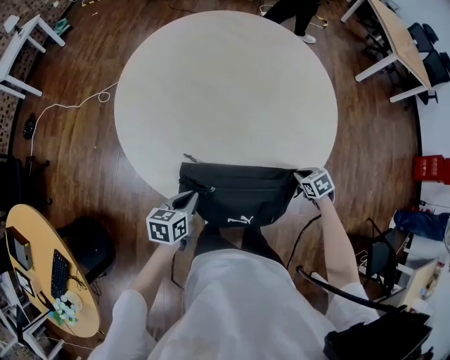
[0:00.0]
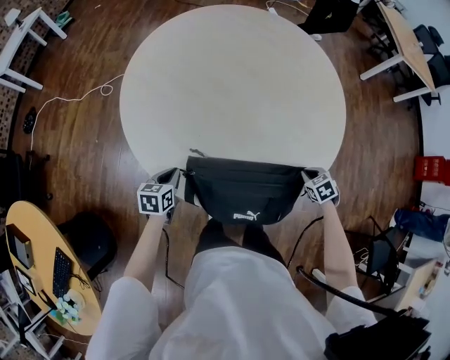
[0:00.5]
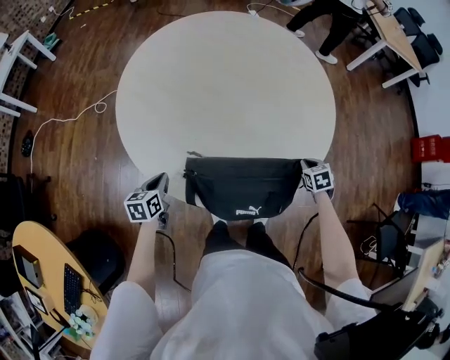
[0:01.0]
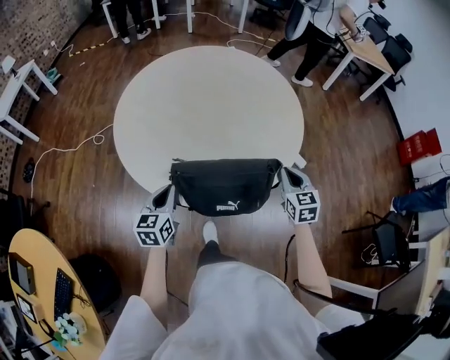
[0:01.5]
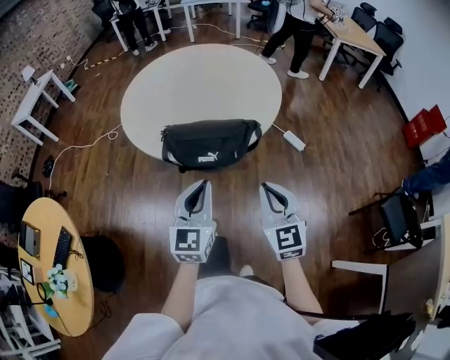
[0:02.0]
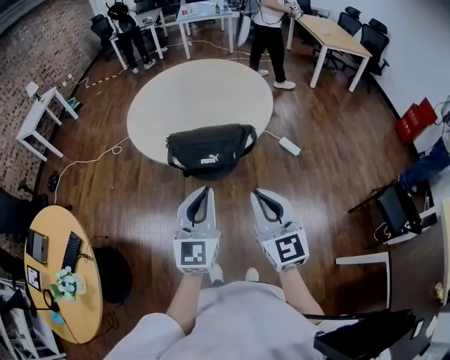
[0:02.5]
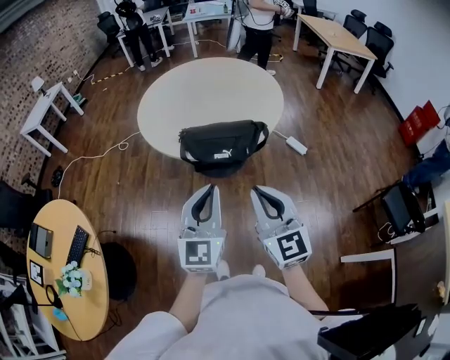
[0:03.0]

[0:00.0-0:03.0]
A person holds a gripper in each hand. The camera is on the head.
0:00.0 to 0:01.5: The right gripper moves upward and backward, approximately 20 cm, and points its fingers some 40 degrees further upward; the left gripper is displaced upward by some 10 cm, and swivels roughly 30 degrees.
0:01.5 to 0:03.0: The right gripper travels backward and upward by some 50 cm, and turns by roughly 30 degrees. Meanwhile the left gripper heads backward, upward and to the right, covering roughly 50 cm, and swivels approximately 30 degrees.

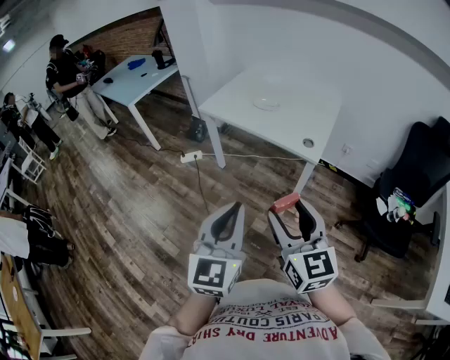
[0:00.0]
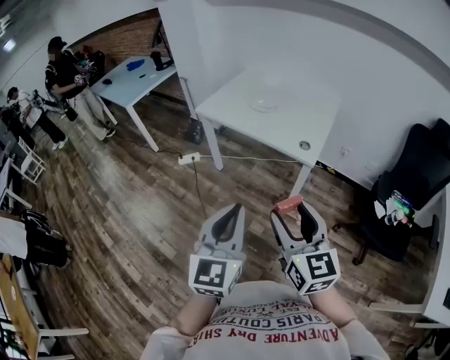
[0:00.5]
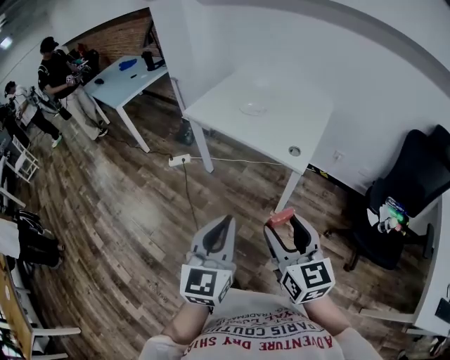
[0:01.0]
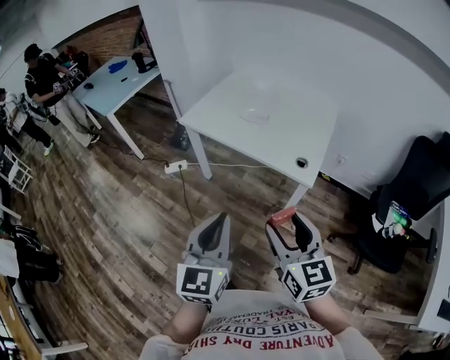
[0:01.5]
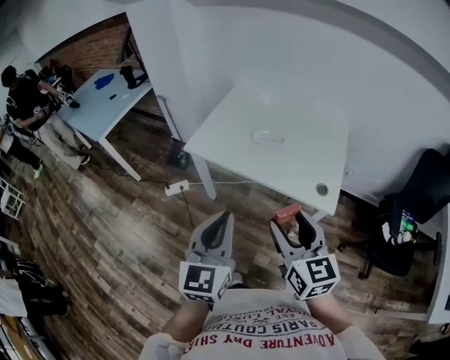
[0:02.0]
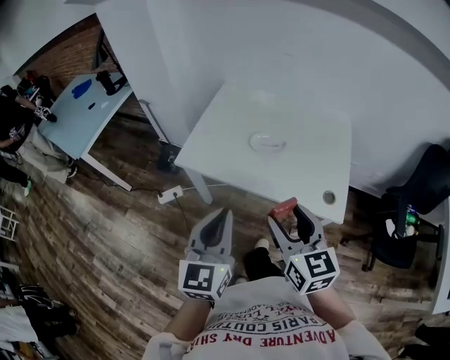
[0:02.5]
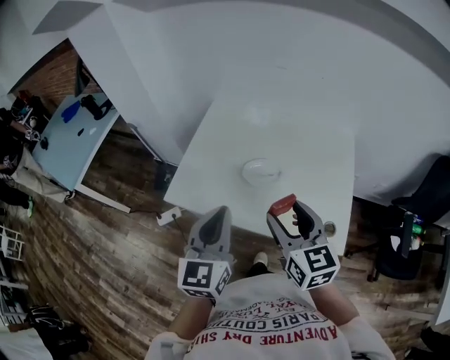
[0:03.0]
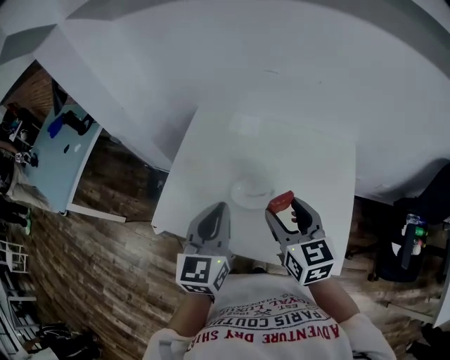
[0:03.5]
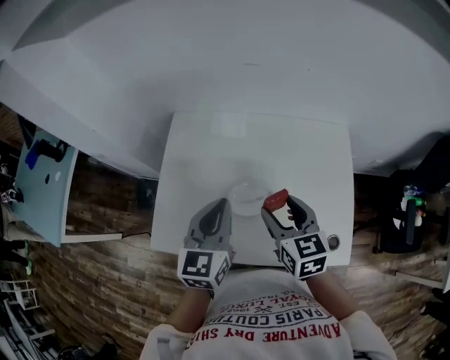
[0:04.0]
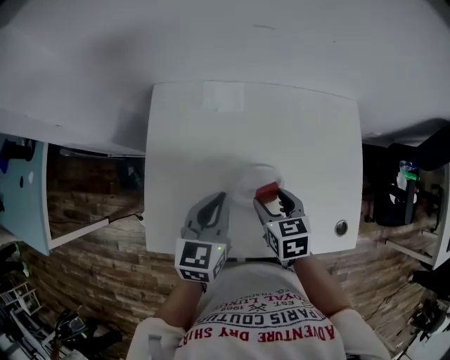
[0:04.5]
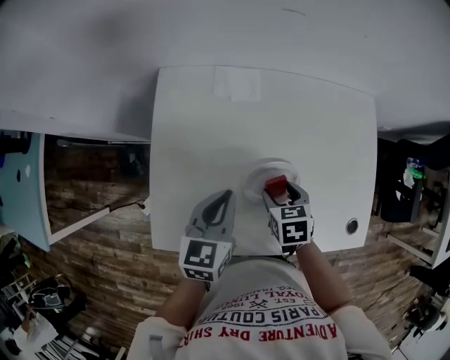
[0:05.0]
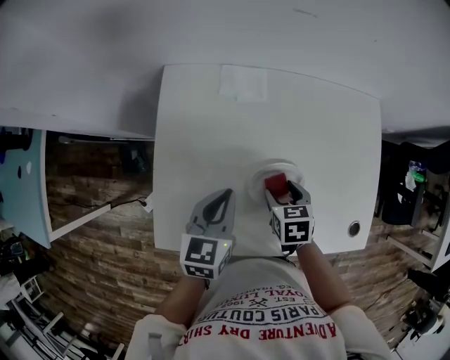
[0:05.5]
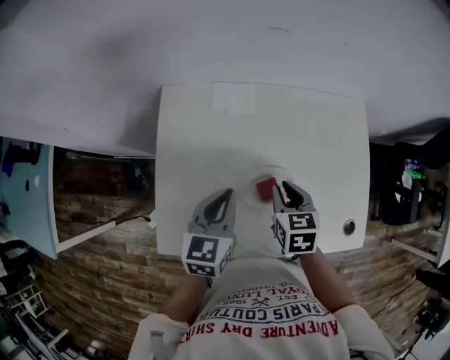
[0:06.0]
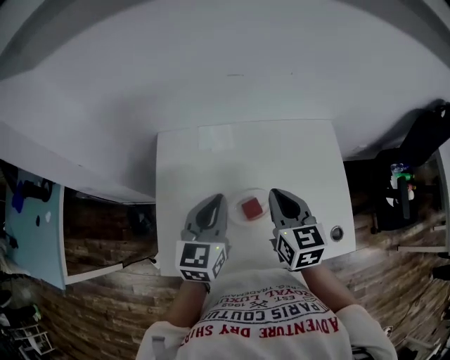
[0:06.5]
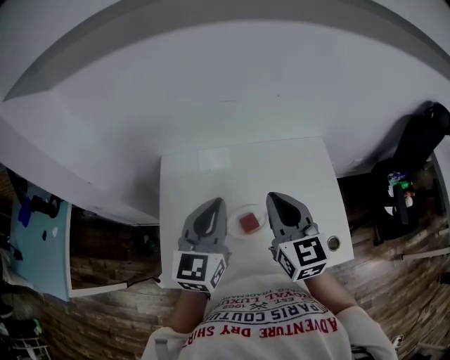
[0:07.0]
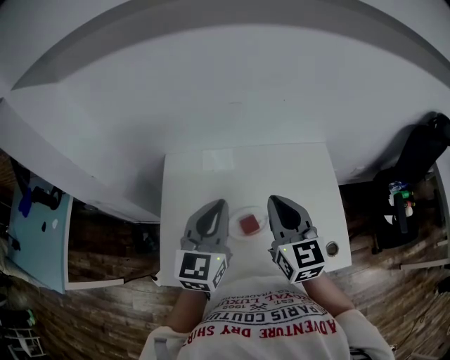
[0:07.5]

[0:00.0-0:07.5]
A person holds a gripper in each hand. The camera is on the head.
0:00.0 to 0:02.0: The two grippers go roughly 30 cm forward.
0:02.0 to 0:04.0: Both grippers are carried forward, some 50 cm. The left gripper swivels roughly 20 degrees; the right gripper turns by about 20 degrees.
0:04.0 to 0:05.5: The right gripper goes roughly 20 cm downward, and points its fingers approximately 30 degrees further downward. Meanwhile the left gripper goes about 15 cm downward and to the left, and rotates some 20 degrees.
0:05.5 to 0:07.5: The two grippers go some 25 cm upward. The right gripper angles its fingers upward, by approximately 50 degrees, and closes its fingers; the left gripper rotates about 30 degrees.

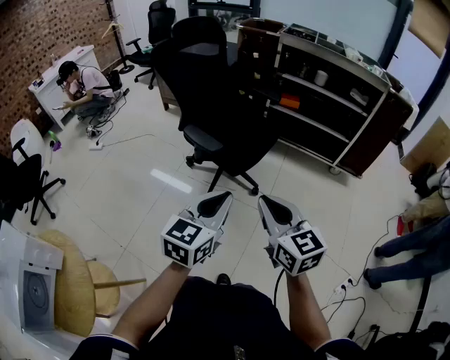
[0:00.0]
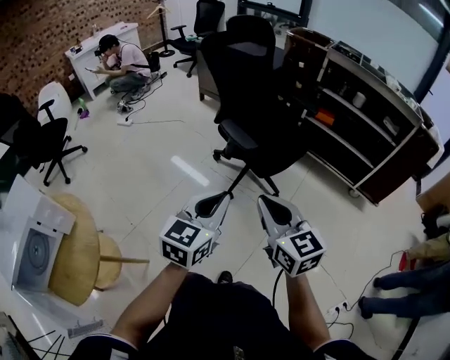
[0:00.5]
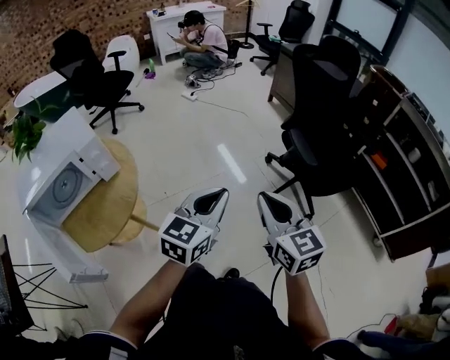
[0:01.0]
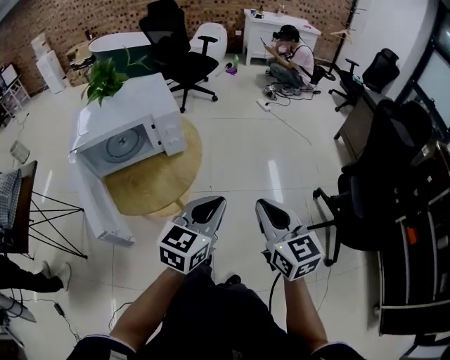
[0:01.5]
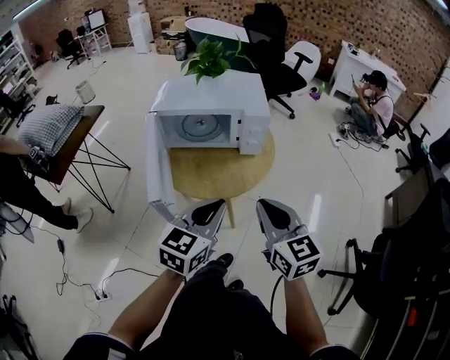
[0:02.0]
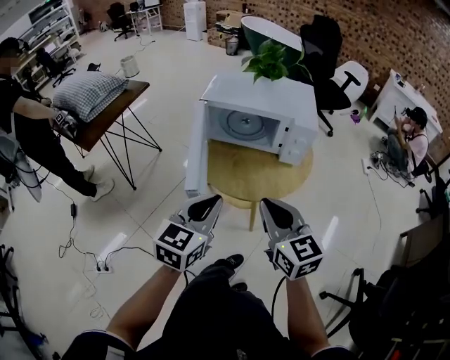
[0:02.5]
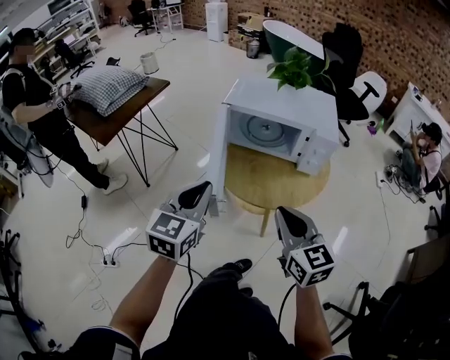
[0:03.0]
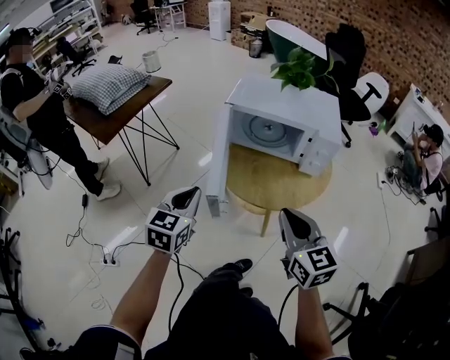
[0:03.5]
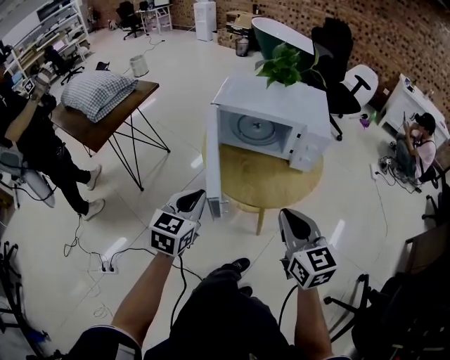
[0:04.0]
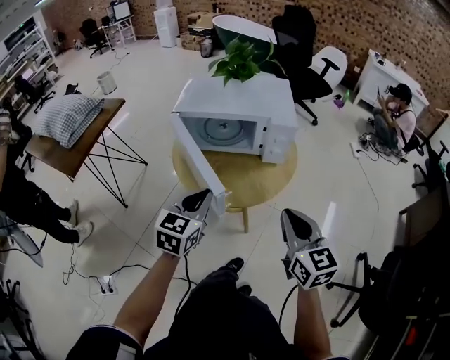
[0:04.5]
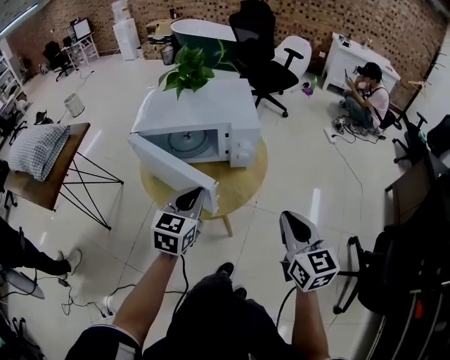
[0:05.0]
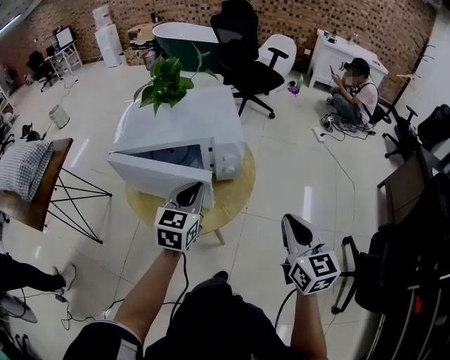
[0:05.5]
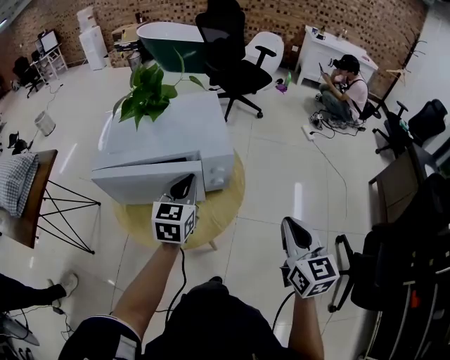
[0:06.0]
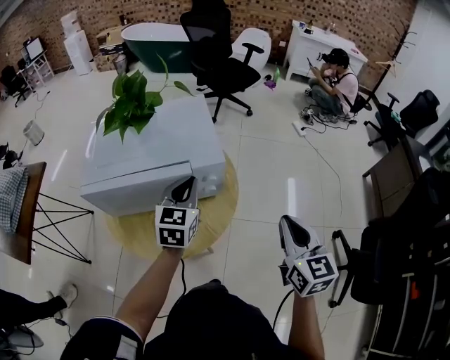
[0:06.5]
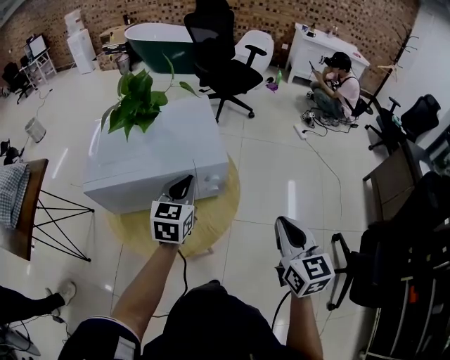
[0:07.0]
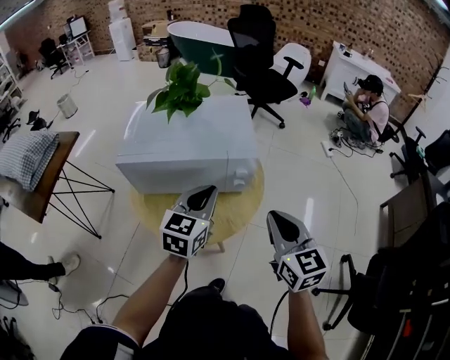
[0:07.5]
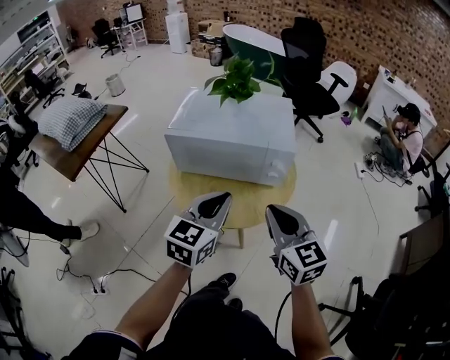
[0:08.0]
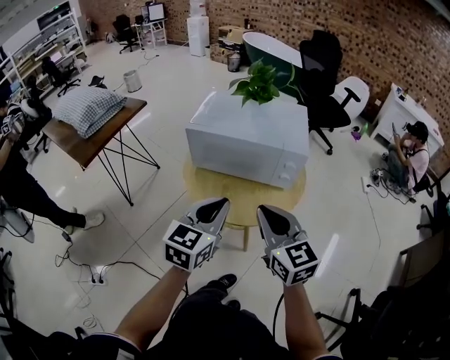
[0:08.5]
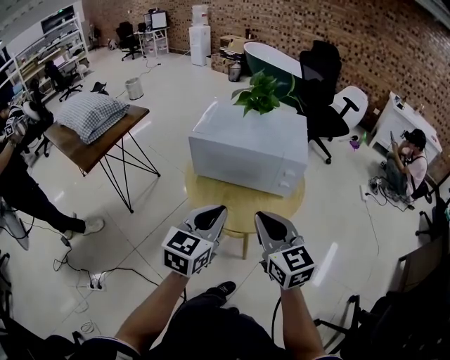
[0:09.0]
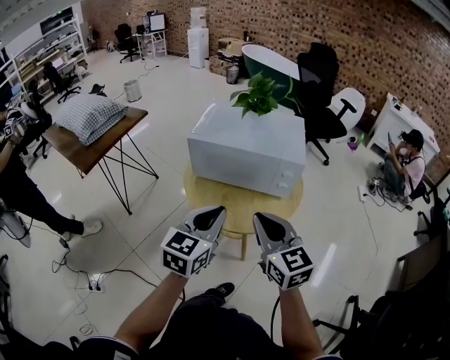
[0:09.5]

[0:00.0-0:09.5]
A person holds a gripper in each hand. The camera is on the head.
0:00.0 to 0:02.0: The two grippers travel together, roughly 50 cm. The right gripper rotates about 80 degrees. Meanwhile the left gripper changes its angle by about 80 degrees.
0:02.0 to 0:04.0: The left gripper is displaced to the left by roughly 20 cm, and swivels roughly 20 degrees. The right gripper shifts approximately 5 cm to the left.
0:04.0 to 0:05.5: The right gripper moves to the right, roughly 20 cm, and rotates about 30 degrees. The left gripper is displaced to the right and forward by approximately 25 cm.
0:05.5 to 0:07.5: The left gripper goes forward and returns, roughly 10 cm each way. Meanwhile the right gripper travels to the left and forward by roughly 10 cm.
0:07.5 to 0:09.5: The right gripper shifts some 15 cm to the left, and turns by about 20 degrees; the left gripper heads backward and to the left, covering some 20 cm.

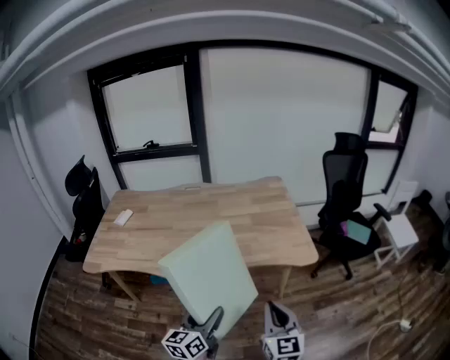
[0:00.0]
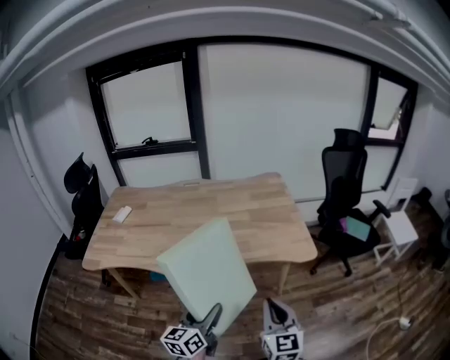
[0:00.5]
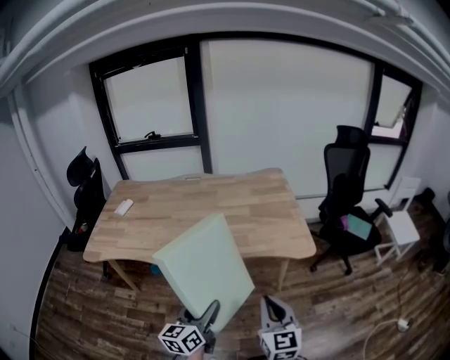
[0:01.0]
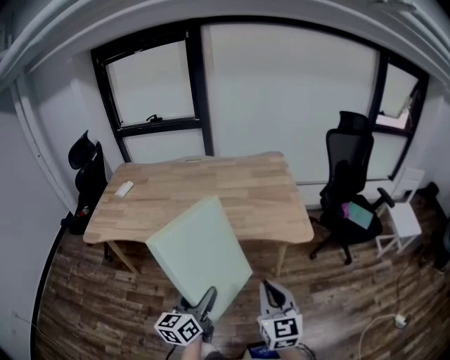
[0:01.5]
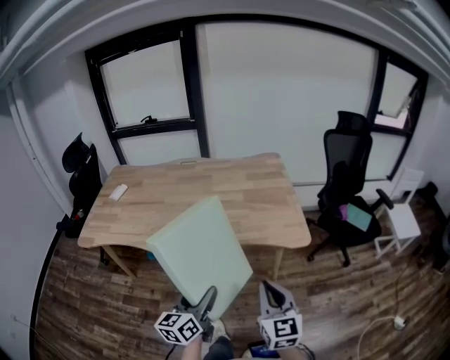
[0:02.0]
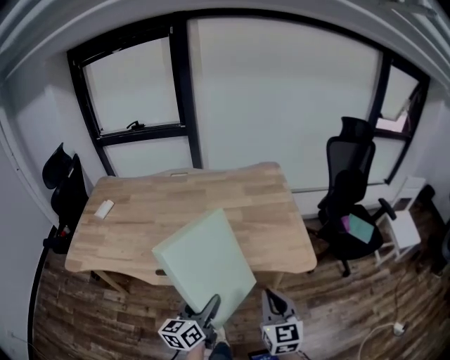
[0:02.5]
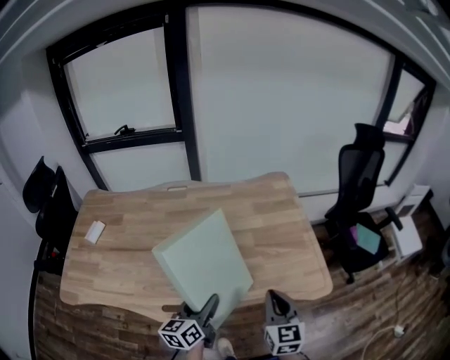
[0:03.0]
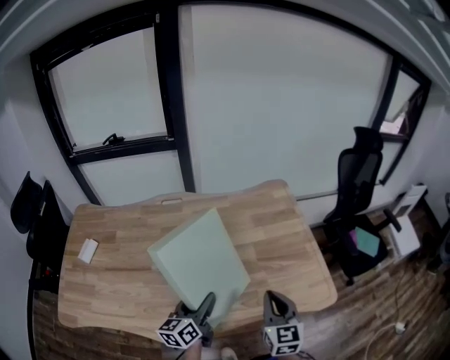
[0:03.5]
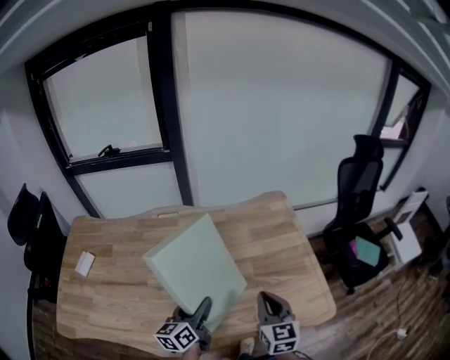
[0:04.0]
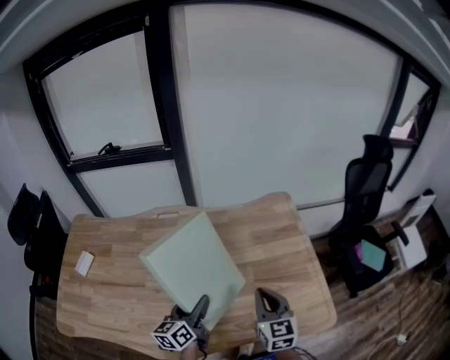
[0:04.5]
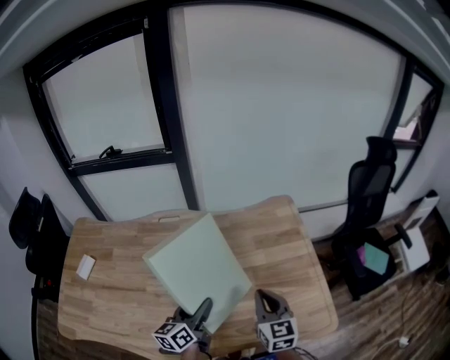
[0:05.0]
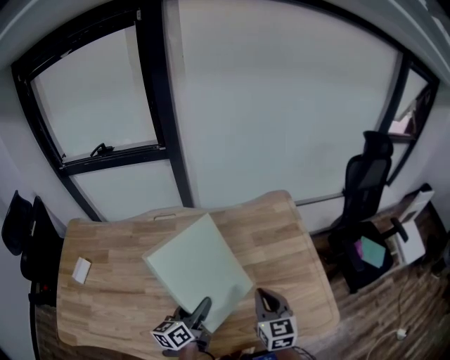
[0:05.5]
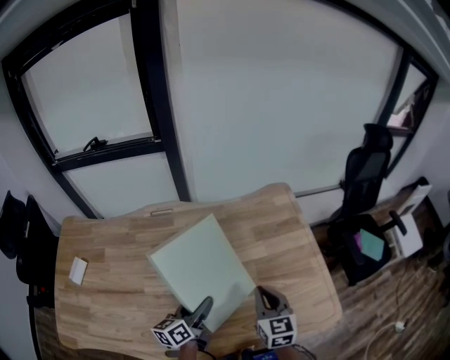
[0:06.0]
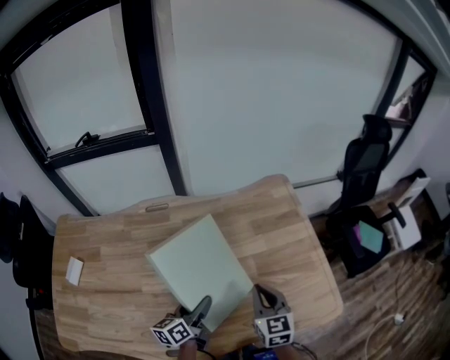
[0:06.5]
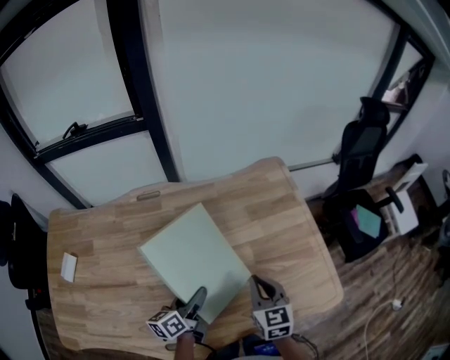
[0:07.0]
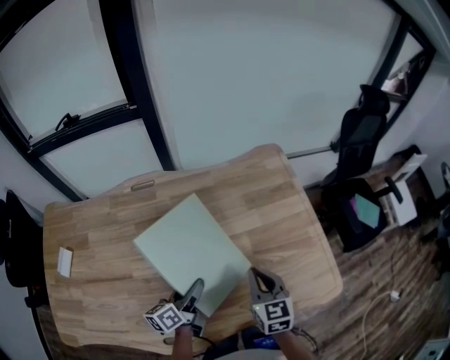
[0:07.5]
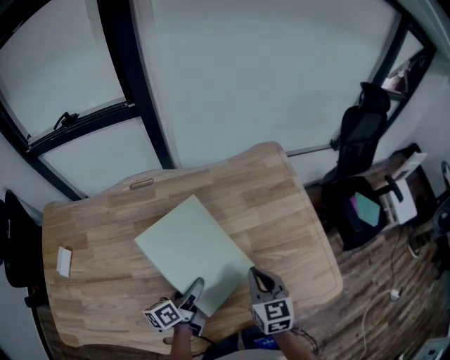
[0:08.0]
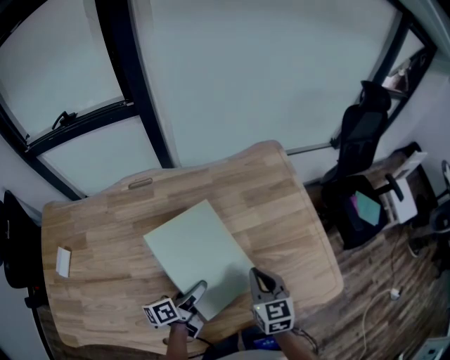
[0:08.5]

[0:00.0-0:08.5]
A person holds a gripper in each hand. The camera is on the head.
0:00.0 to 0:02.0: The grippers both shift to the right by about 5 cm.
0:02.0 to 0:04.0: Both grippers move forward, roughly 40 cm.
0:04.0 to 0:06.5: The right gripper heads forward, covering about 5 cm; the left gripper shifts approximately 10 cm downward and forward.
0:06.5 to 0:08.5: The left gripper swivels about 20 degrees.
